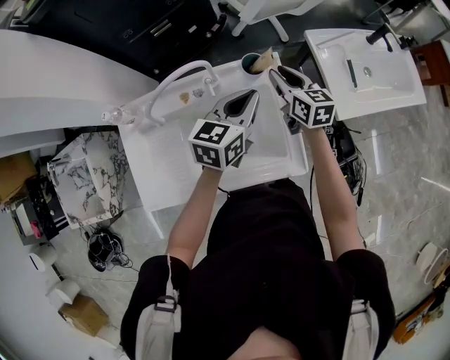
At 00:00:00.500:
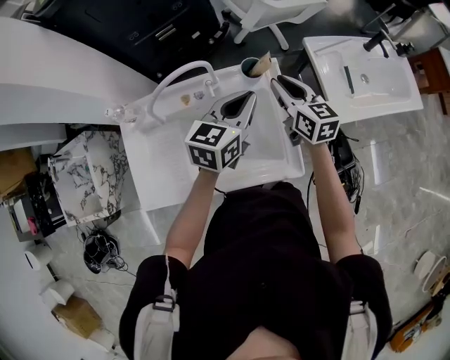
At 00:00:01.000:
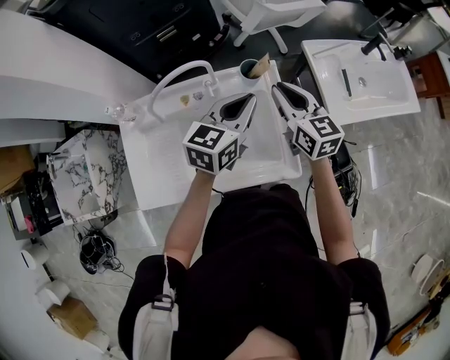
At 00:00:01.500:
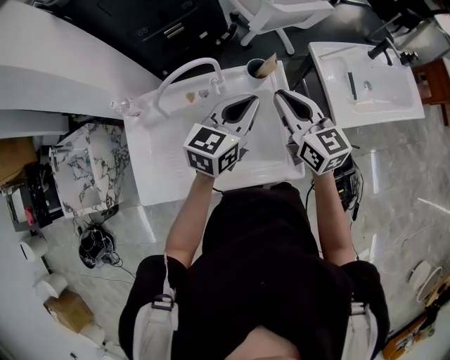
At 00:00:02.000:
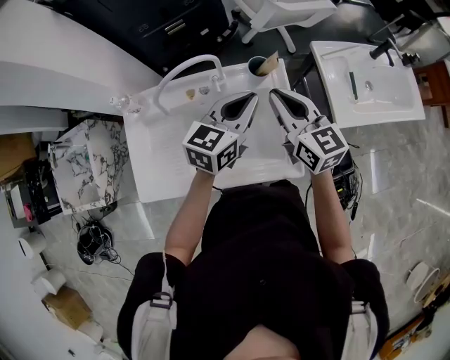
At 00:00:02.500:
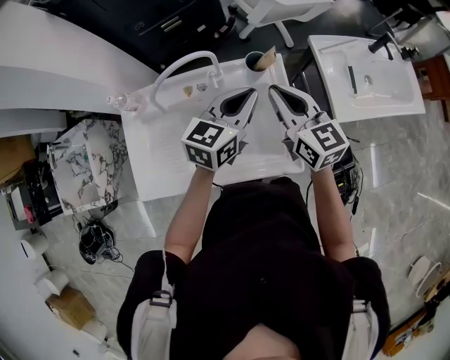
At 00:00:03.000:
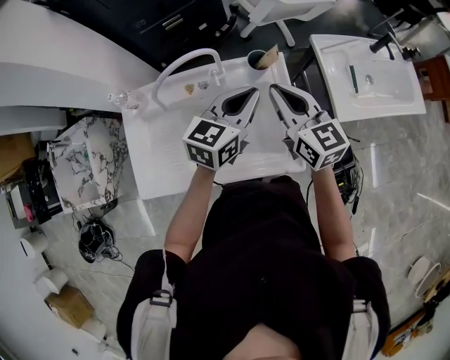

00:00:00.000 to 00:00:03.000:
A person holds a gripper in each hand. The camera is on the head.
00:00:00.000 to 00:00:01.500: The right gripper shifts some 15 cm upward and backward.
00:00:01.500 to 00:00:03.000: The grippers make only small movements.

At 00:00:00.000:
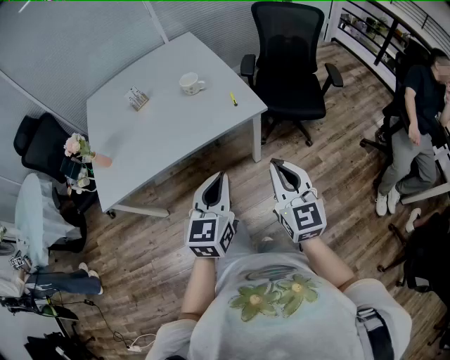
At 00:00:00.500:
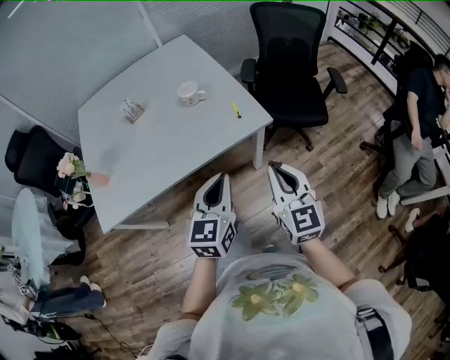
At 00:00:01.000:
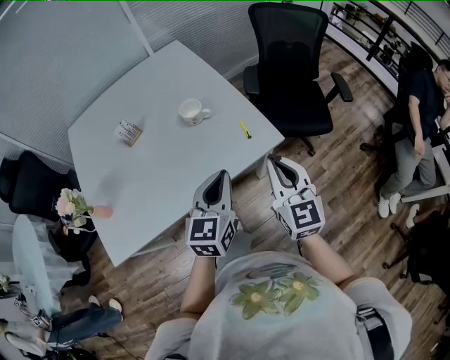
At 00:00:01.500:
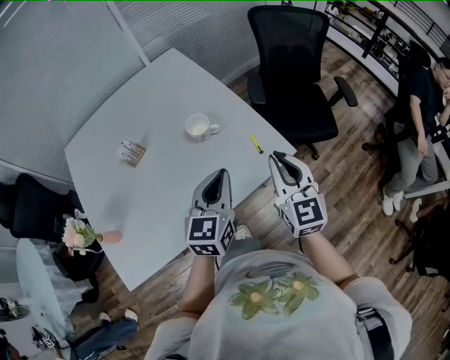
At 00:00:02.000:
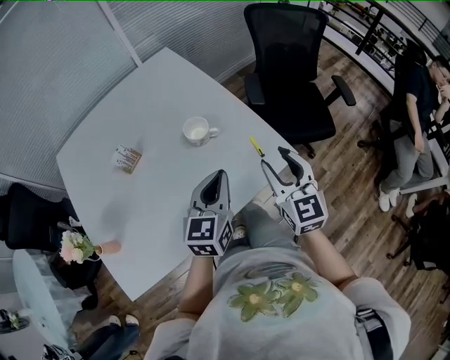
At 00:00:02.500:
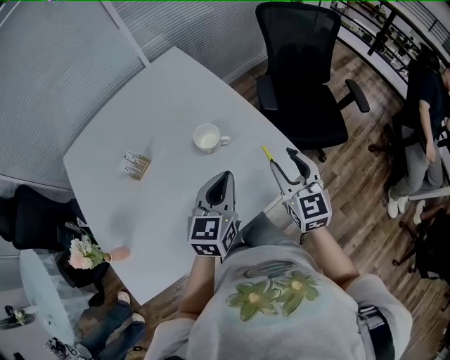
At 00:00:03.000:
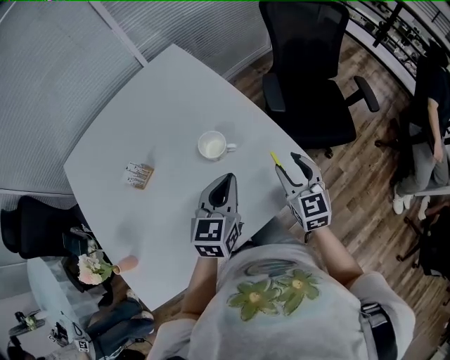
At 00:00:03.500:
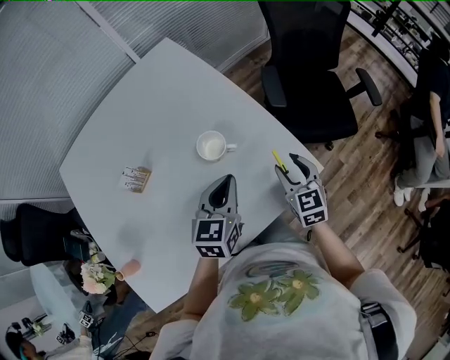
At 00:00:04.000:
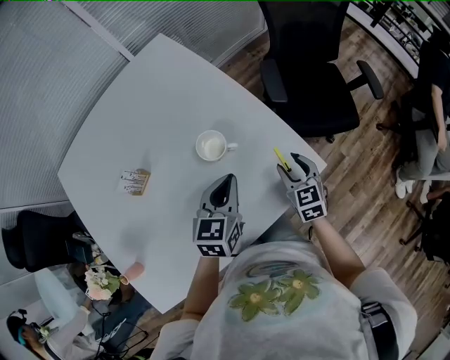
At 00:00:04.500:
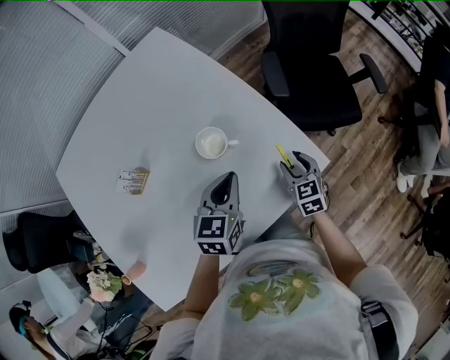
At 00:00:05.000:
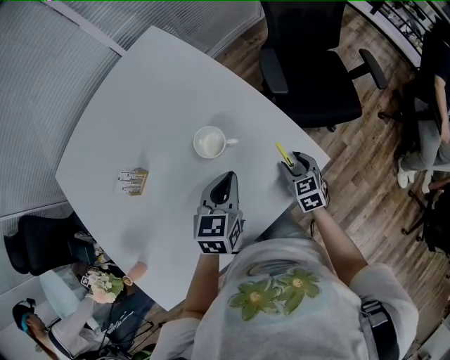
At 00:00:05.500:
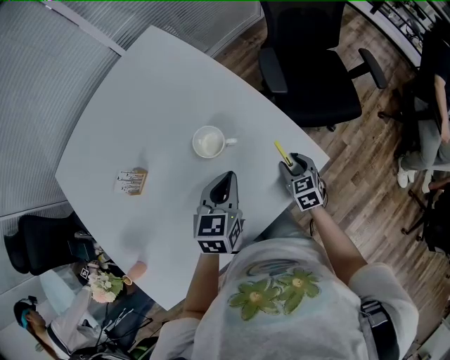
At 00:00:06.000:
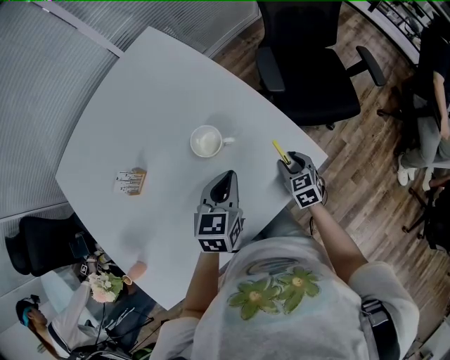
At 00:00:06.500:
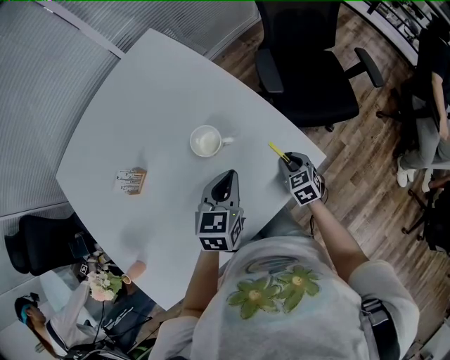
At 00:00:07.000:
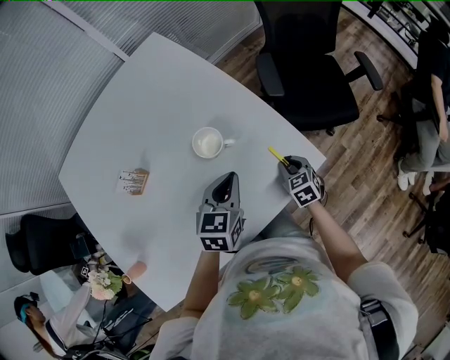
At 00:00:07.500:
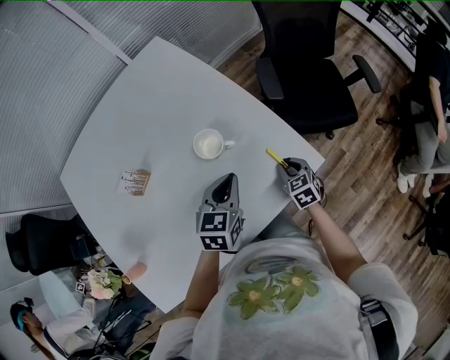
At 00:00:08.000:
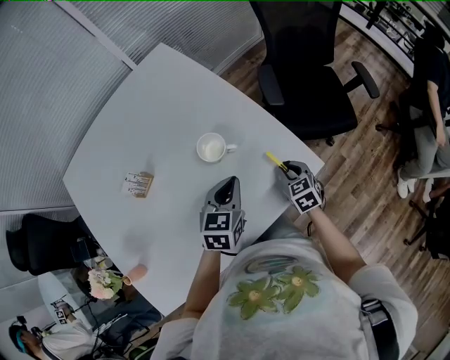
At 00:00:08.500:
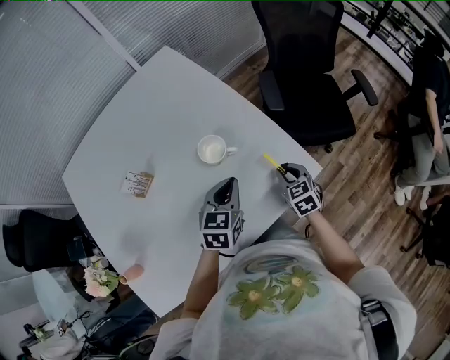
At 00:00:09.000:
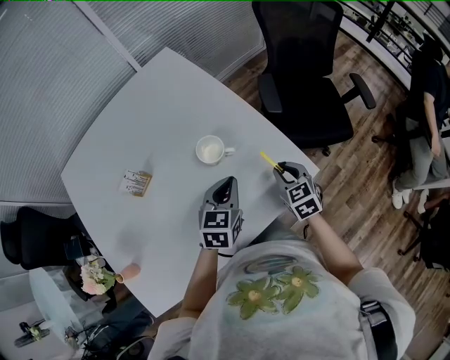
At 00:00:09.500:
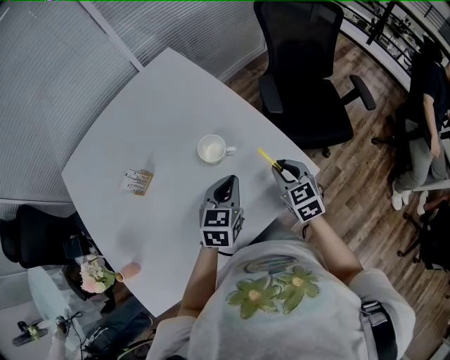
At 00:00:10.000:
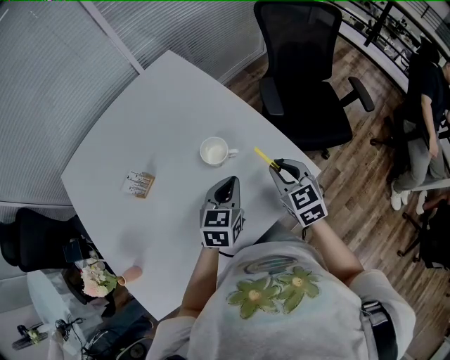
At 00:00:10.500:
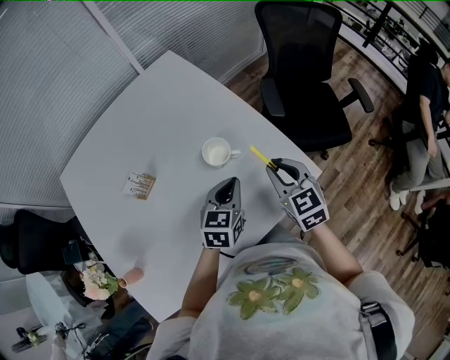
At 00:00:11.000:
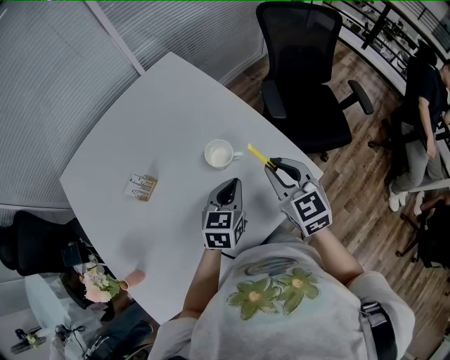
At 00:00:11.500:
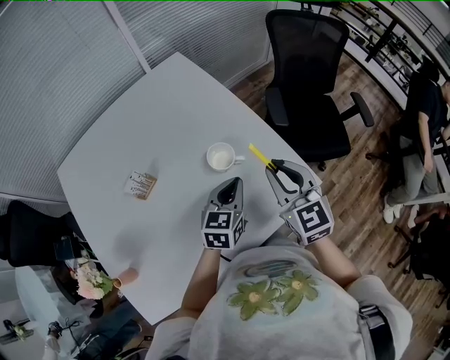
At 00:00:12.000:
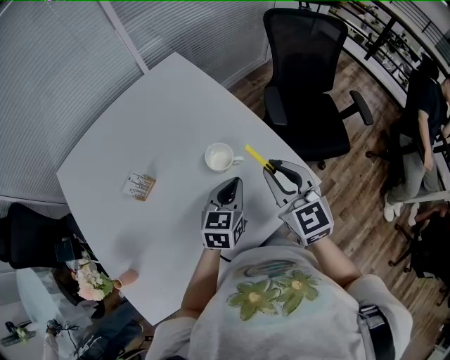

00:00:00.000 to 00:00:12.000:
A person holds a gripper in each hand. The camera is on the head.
00:00:00.000 to 00:00:02.000: Both grippers move forward and to the left, roughly 40 cm. The right gripper opens up.
00:00:02.000 to 00:00:04.000: The right gripper moves downward and forward, about 25 cm, and swivels roughly 30 degrees. The left gripper shifts about 15 cm forward and downward.
00:00:04.000 to 00:00:06.000: The right gripper travels downward by some 10 cm.
00:00:06.000 to 00:00:08.000: The right gripper closes.
00:00:08.000 to 00:00:10.000: The right gripper heads upward, covering about 15 cm.
00:00:10.000 to 00:00:12.000: The right gripper goes roughly 10 cm upward and to the left.

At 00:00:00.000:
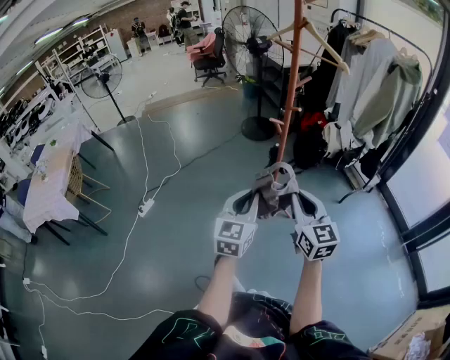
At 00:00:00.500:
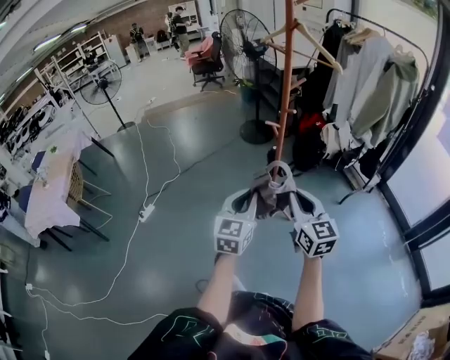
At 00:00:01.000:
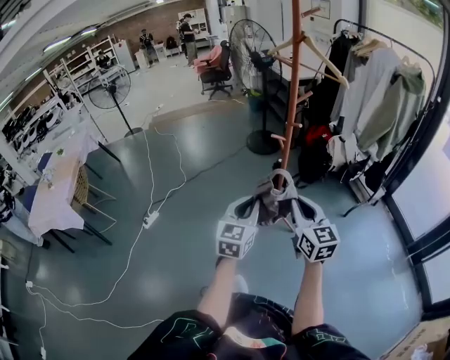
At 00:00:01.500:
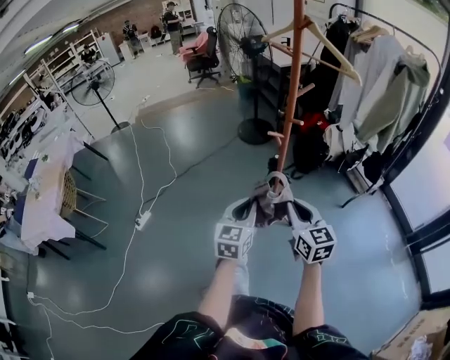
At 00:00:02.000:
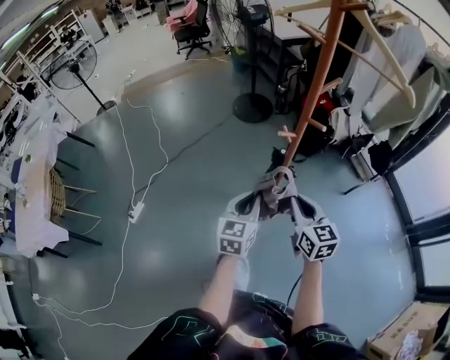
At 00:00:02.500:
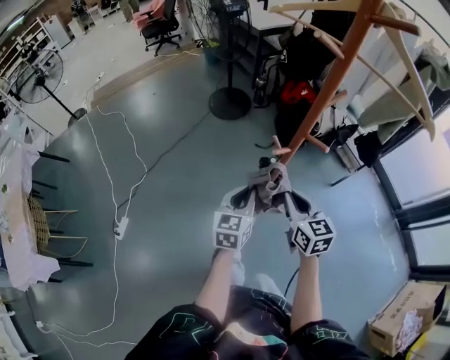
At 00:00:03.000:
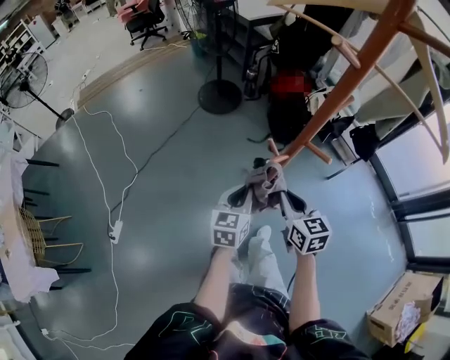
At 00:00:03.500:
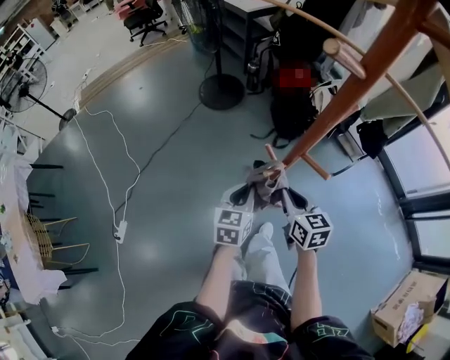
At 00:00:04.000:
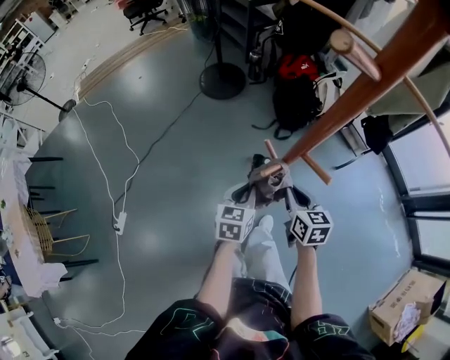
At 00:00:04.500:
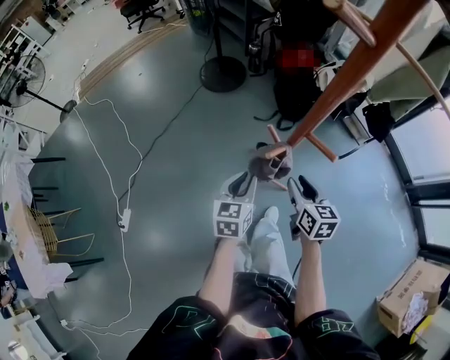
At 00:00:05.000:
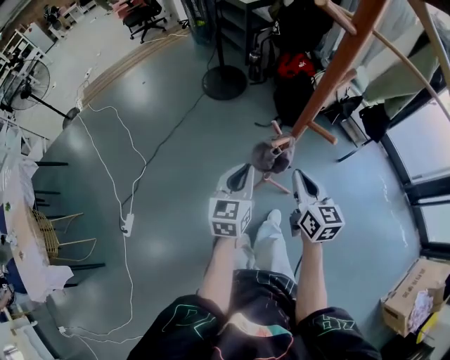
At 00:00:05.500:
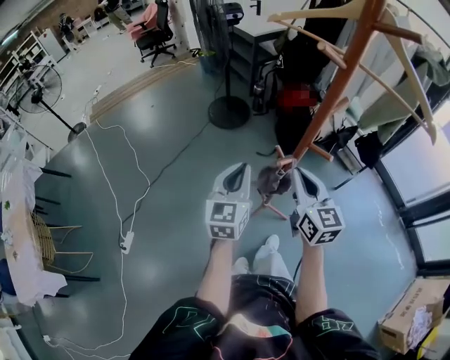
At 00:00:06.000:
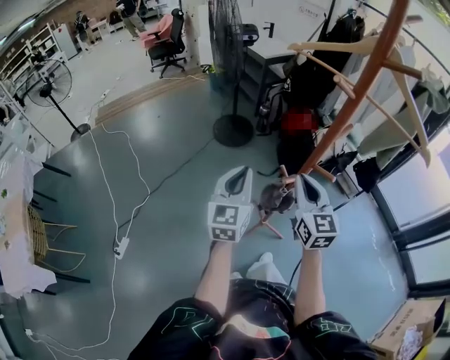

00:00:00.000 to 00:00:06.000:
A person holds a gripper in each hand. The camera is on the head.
00:00:00.000 to 00:00:02.000: Both grippers move forward and downward, roughly 25 cm.
00:00:02.000 to 00:00:04.000: Both grippers move forward and downward, roughly 20 cm. The right gripper changes its angle by some 20 degrees.
00:00:04.000 to 00:00:06.000: The left gripper moves upward and to the left, about 25 cm, and tilts its fingers roughly 30 degrees upward; the right gripper shifts roughly 20 cm upward, changes its angle by about 40 degrees, and opens, then closes again.

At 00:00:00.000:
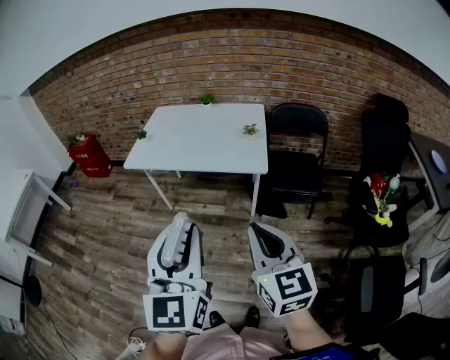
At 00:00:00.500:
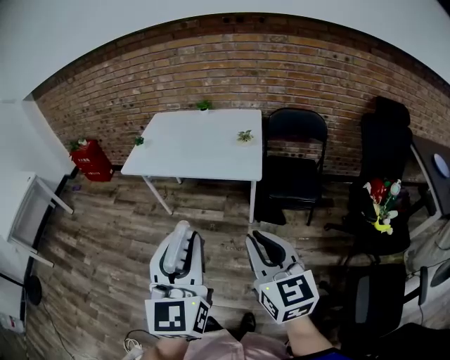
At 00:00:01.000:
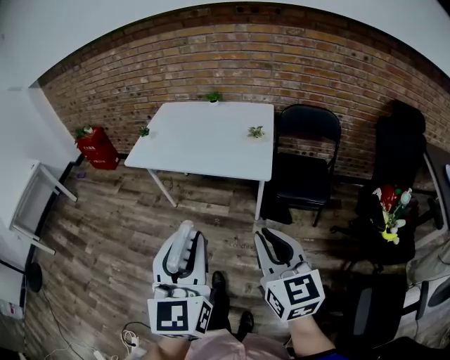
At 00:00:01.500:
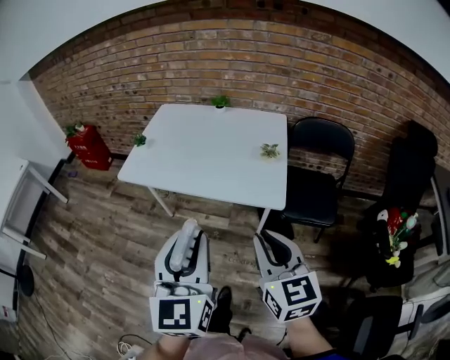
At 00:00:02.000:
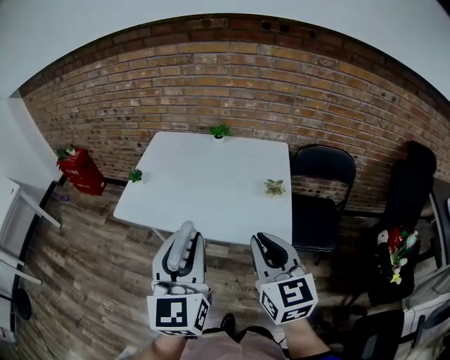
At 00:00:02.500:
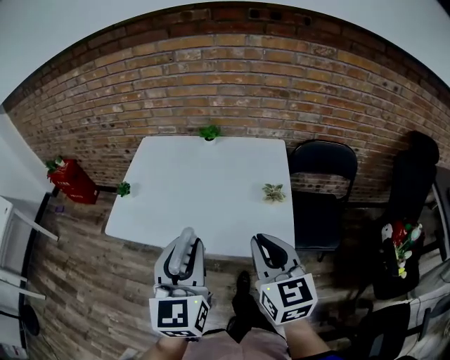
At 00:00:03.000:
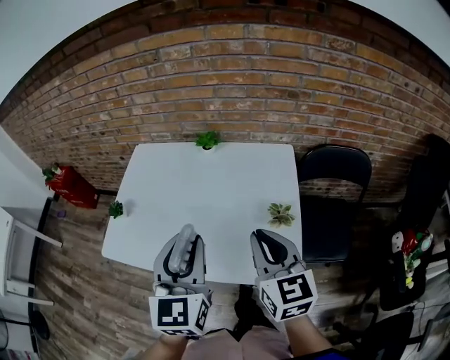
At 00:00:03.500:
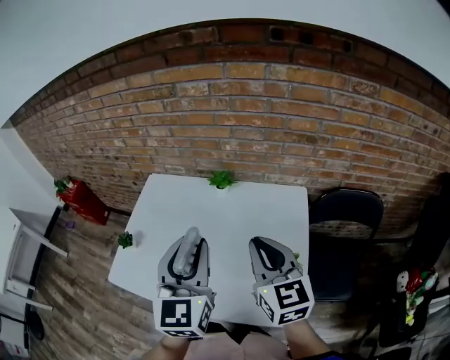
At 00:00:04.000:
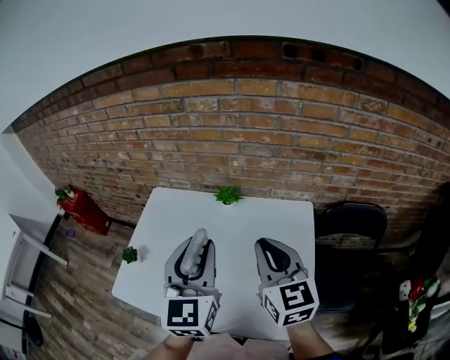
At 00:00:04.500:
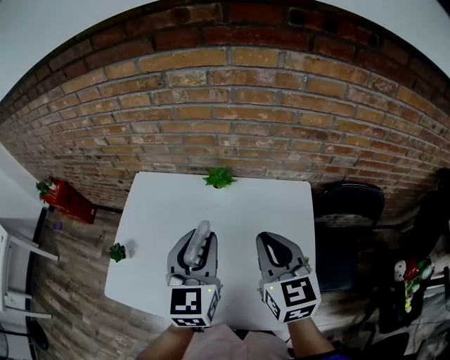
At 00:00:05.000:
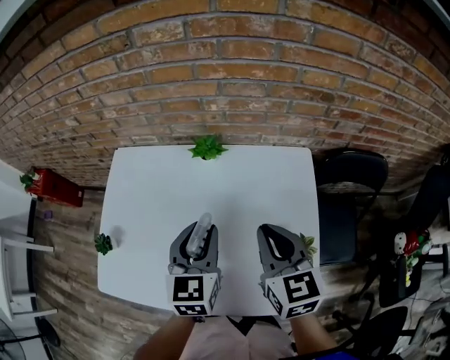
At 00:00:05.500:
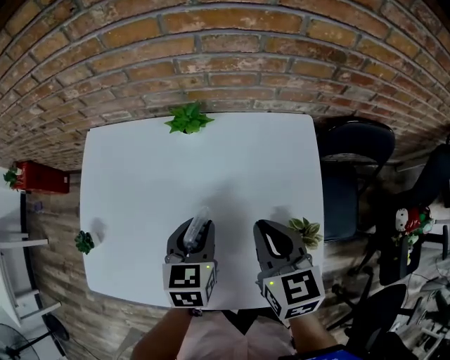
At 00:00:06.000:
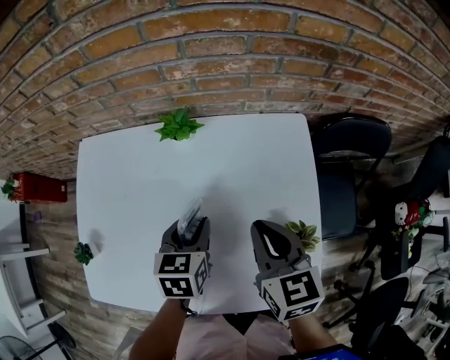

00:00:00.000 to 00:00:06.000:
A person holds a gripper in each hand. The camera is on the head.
00:00:00.000 to 00:00:02.000: The grippers both shift forward by about 30 cm.
00:00:02.000 to 00:00:04.000: Both grippers move forward, about 35 cm.
00:00:04.000 to 00:00:06.000: The right gripper moves downward, approximately 20 cm, and rotates roughly 30 degrees. Meanwhile the left gripper moves downward, some 30 cm, and tilts its fingers approximately 40 degrees downward.
